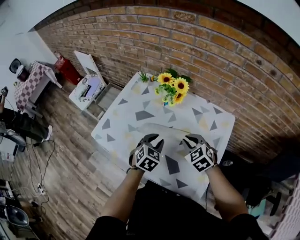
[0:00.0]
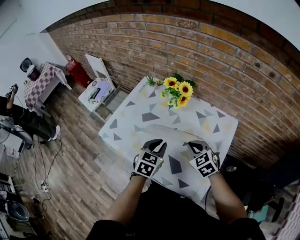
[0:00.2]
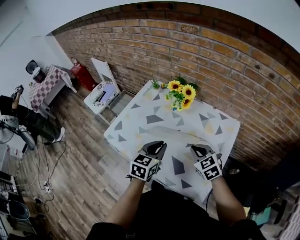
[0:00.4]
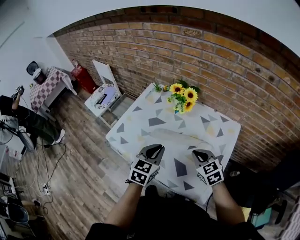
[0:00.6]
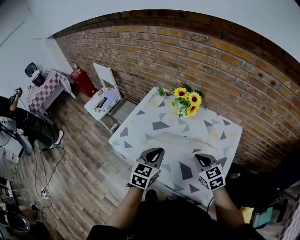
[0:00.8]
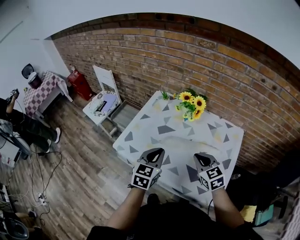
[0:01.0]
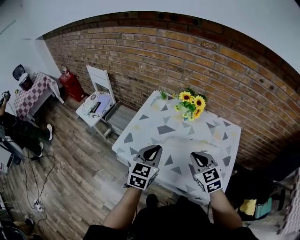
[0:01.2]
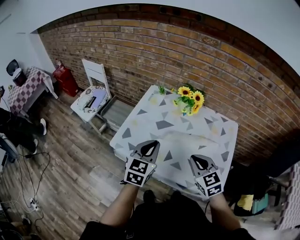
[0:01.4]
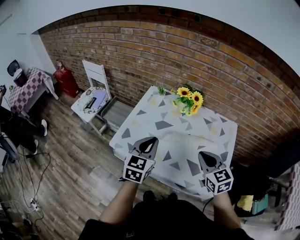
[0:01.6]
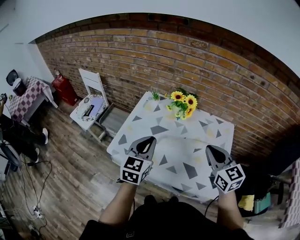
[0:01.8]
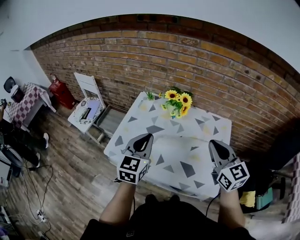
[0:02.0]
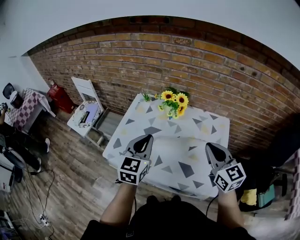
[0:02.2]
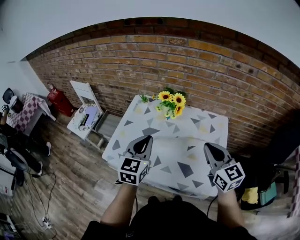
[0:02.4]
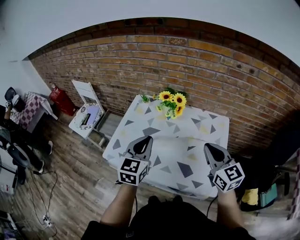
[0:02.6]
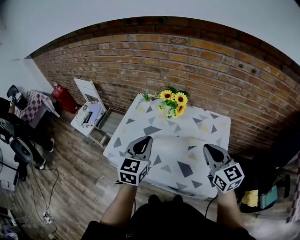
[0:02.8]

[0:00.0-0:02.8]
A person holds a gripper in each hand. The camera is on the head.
0:00.0 to 0:01.4: The right gripper heads to the left, upward and backward, covering some 20 cm. The left gripper goes roughly 20 cm to the left and upward, and swivels roughly 30 degrees.
0:01.4 to 0:02.8: The right gripper moves to the right and upward, roughly 15 cm, and turns by approximately 20 degrees; the left gripper moves to the right and upward, approximately 10 cm.

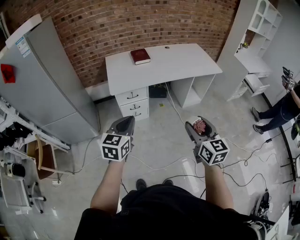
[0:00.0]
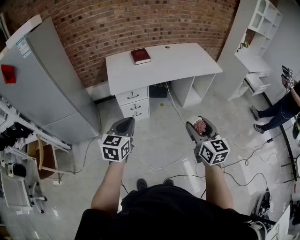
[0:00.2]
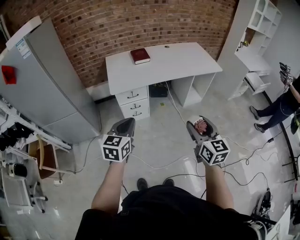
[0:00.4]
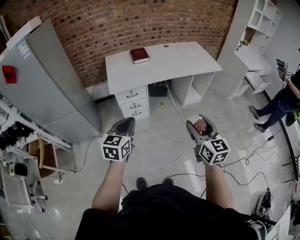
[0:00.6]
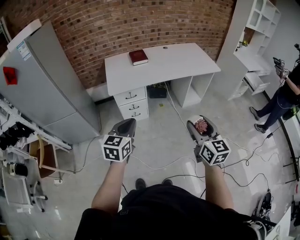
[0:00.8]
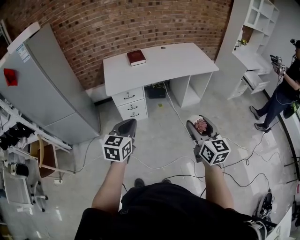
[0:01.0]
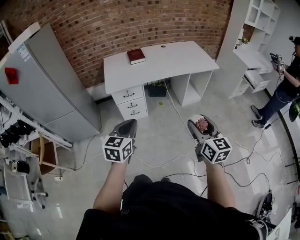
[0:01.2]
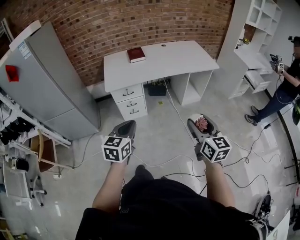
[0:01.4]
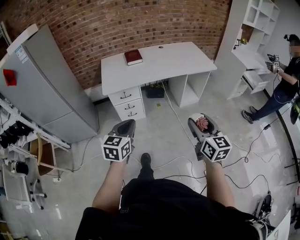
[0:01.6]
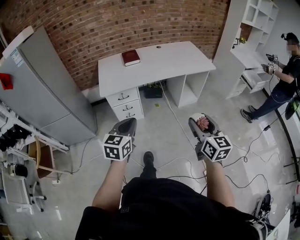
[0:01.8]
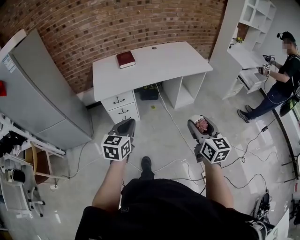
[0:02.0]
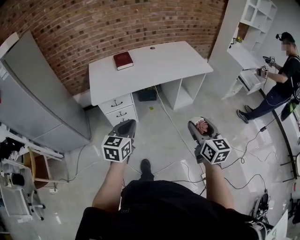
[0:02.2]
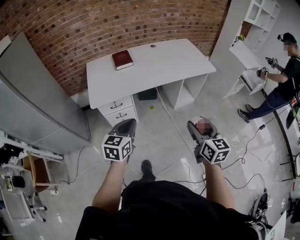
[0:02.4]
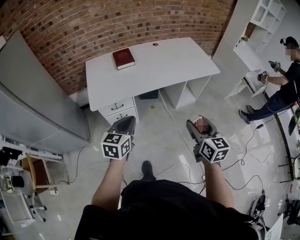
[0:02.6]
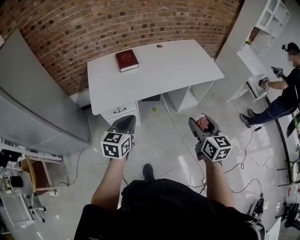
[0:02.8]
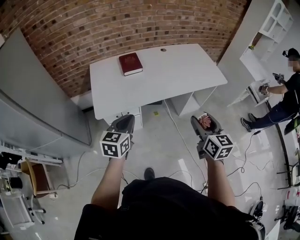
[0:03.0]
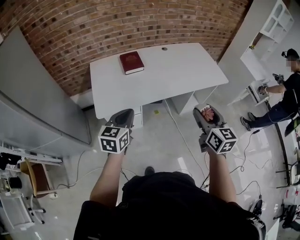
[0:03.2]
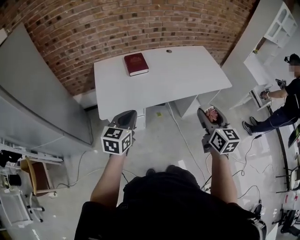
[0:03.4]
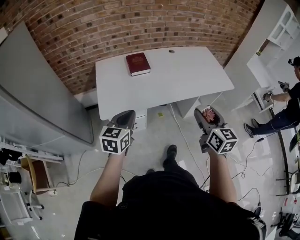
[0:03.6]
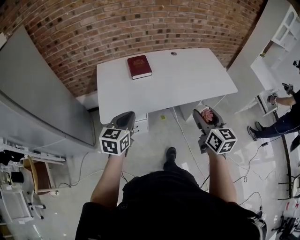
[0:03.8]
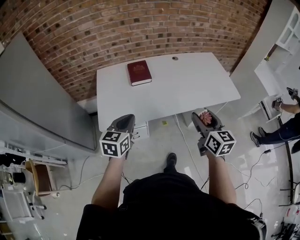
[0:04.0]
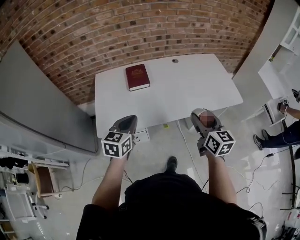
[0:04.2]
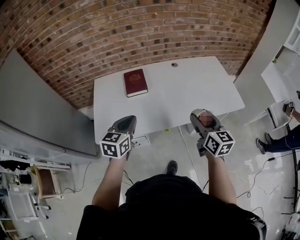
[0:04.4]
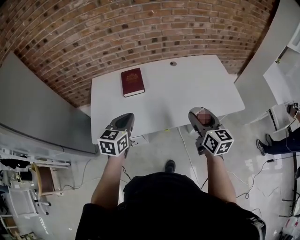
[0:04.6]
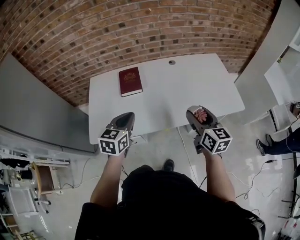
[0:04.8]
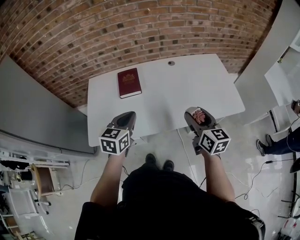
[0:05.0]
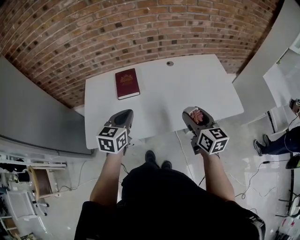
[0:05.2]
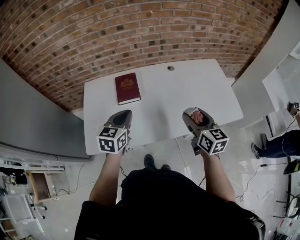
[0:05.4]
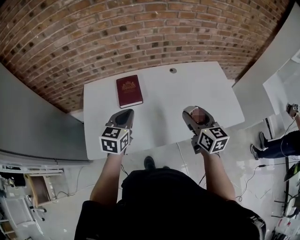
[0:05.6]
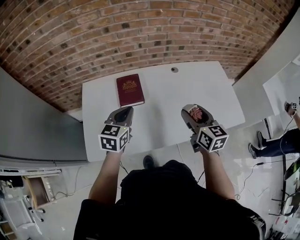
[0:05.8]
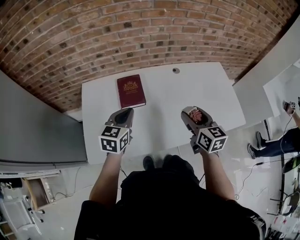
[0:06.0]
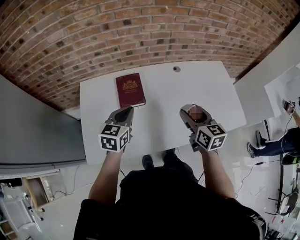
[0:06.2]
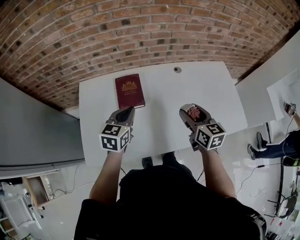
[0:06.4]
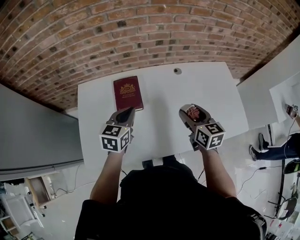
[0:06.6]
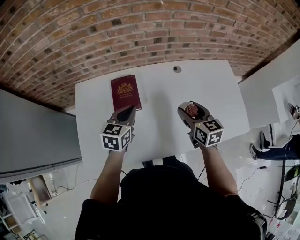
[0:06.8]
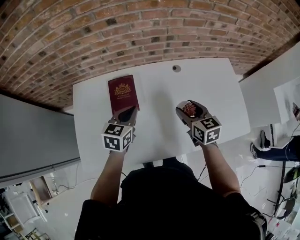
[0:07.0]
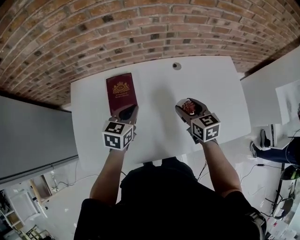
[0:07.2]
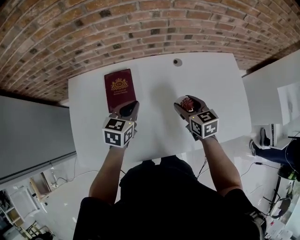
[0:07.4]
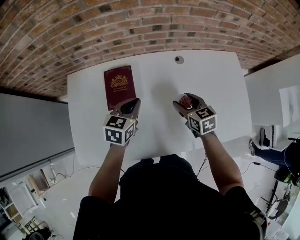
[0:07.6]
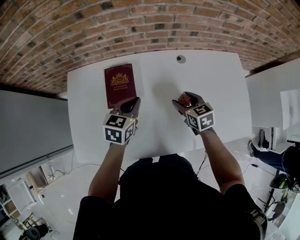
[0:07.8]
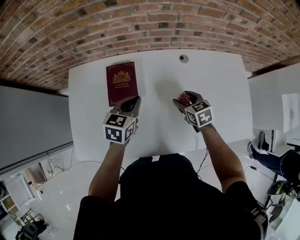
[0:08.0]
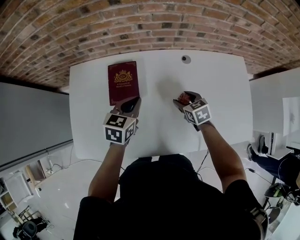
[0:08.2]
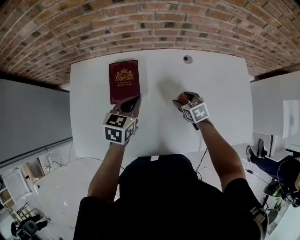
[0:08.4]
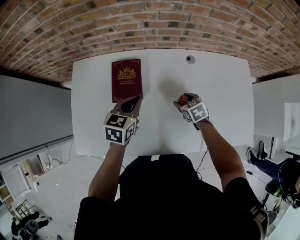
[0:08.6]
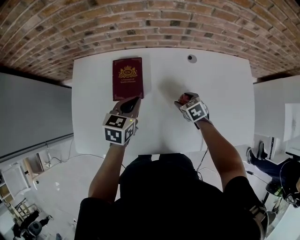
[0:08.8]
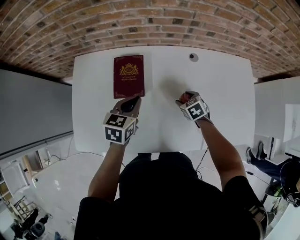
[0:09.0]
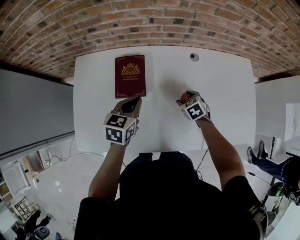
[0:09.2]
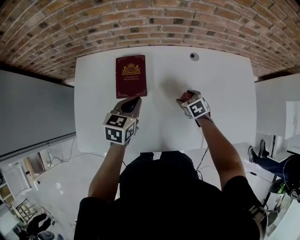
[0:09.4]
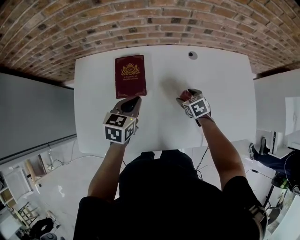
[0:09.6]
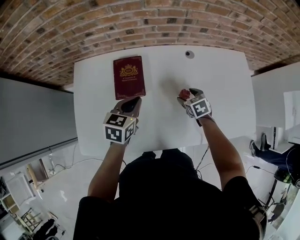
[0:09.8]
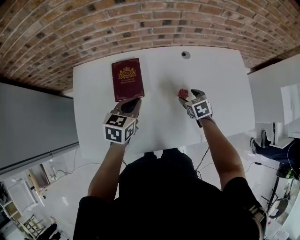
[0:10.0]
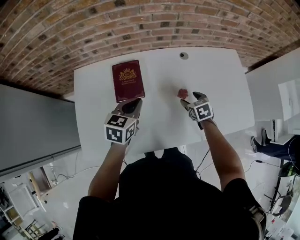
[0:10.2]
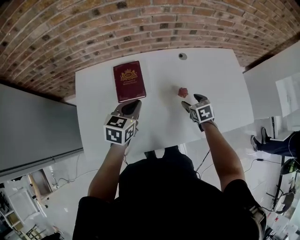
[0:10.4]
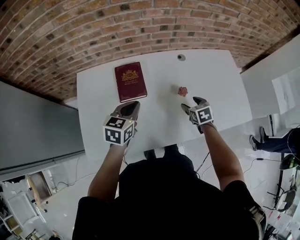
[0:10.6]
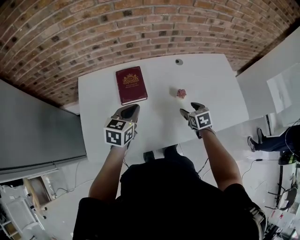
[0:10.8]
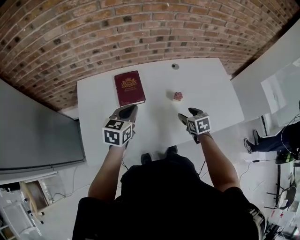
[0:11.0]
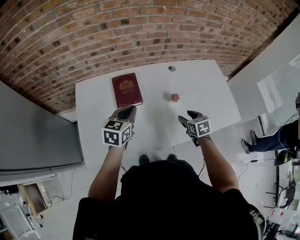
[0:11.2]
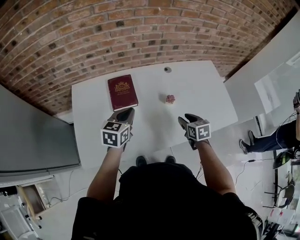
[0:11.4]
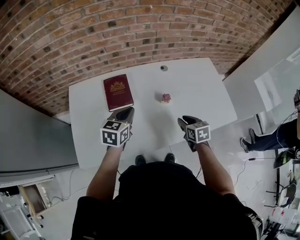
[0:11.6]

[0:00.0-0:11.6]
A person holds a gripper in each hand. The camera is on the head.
0:00.0 to 0:01.4: The two grippers go about 10 cm to the right.
0:01.4 to 0:02.8: The two grippers go about 30 cm forward.
0:02.8 to 0:04.4: The grippers both shift forward by about 25 cm.
0:04.4 to 0:05.8: Both grippers move forward, about 20 cm.
0:05.8 to 0:07.2: The left gripper heads forward, downward and to the right, covering about 15 cm. The right gripper heads forward and downward, covering roughly 20 cm.
0:07.2 to 0:08.8: The right gripper is displaced downward by about 20 cm, and swivels about 30 degrees.
0:08.8 to 0:10.2: The right gripper changes place by approximately 5 cm.
0:10.2 to 0:11.6: The left gripper ends up approximately 5 cm from where it was. The right gripper is displaced backward and upward by approximately 15 cm, and closes.

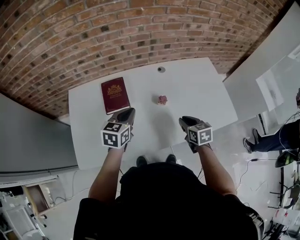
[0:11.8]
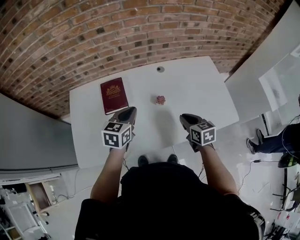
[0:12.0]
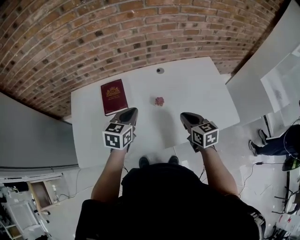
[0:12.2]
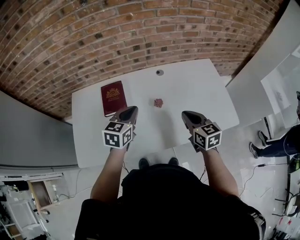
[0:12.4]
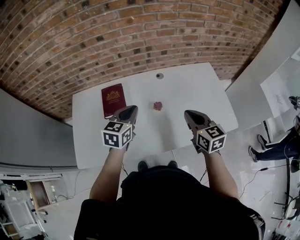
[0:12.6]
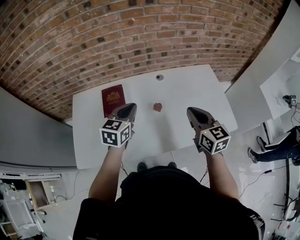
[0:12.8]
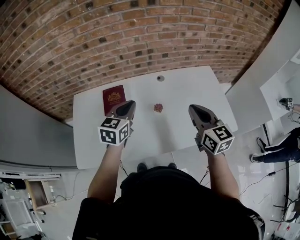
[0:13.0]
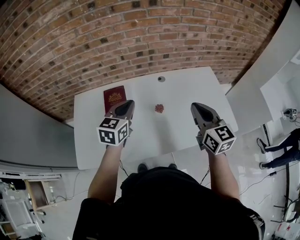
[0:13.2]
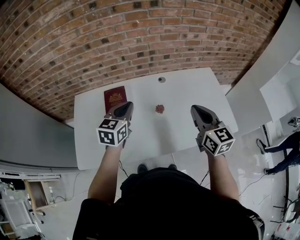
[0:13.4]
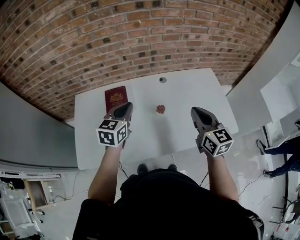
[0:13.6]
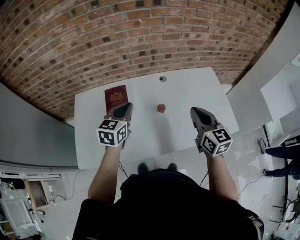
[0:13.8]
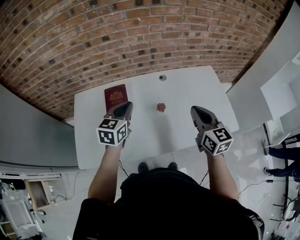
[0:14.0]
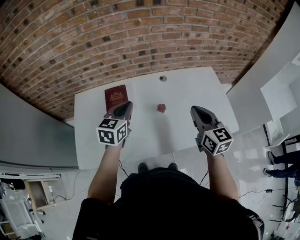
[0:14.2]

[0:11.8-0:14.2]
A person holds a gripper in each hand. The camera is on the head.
0:11.8 to 0:13.0: The right gripper goes some 20 cm upward, and angles its fingers upward, by about 30 degrees. The left gripper heads upward and to the right, covering approximately 10 cm.
0:13.0 to 0:14.2: There are only small adjustments of the grippers.

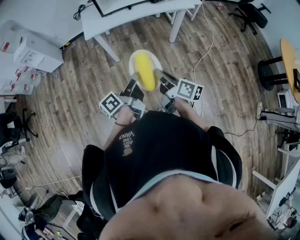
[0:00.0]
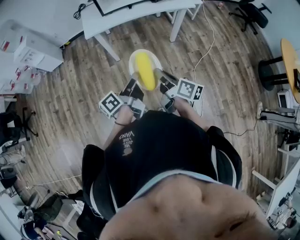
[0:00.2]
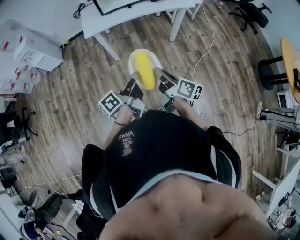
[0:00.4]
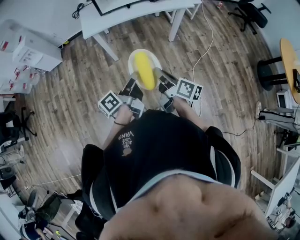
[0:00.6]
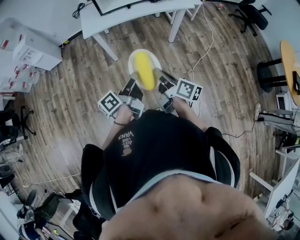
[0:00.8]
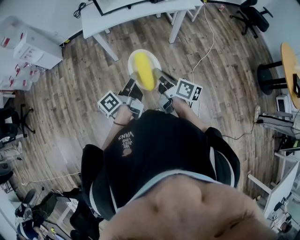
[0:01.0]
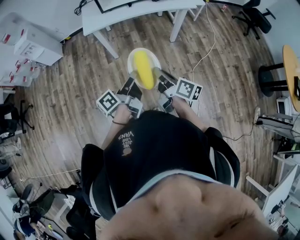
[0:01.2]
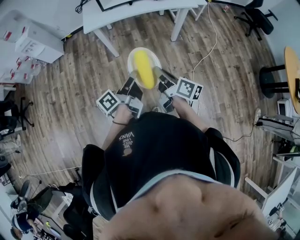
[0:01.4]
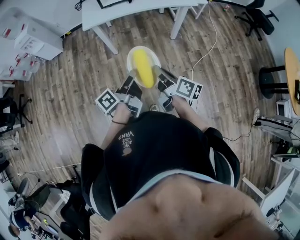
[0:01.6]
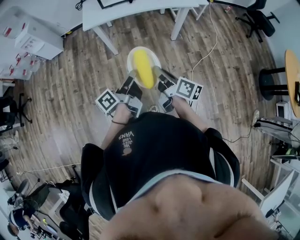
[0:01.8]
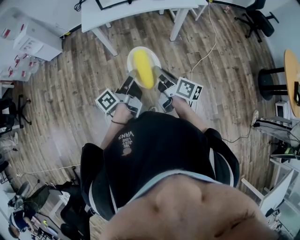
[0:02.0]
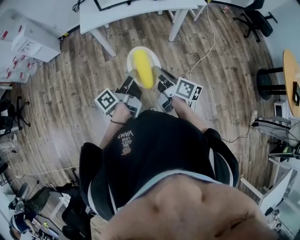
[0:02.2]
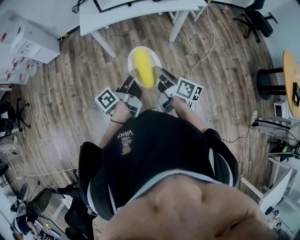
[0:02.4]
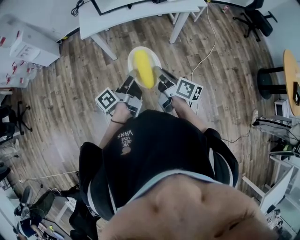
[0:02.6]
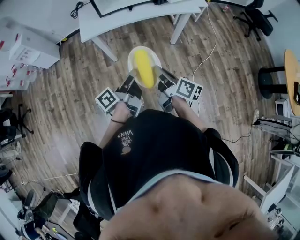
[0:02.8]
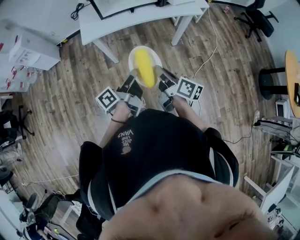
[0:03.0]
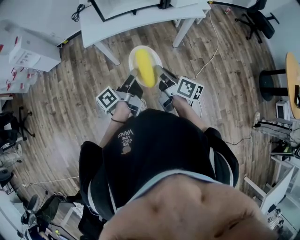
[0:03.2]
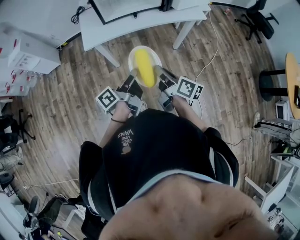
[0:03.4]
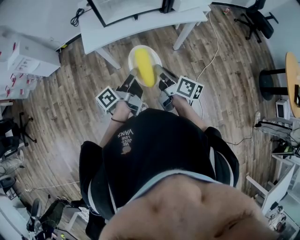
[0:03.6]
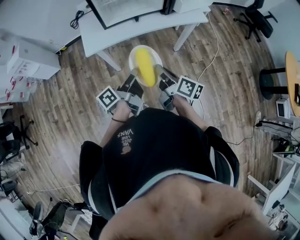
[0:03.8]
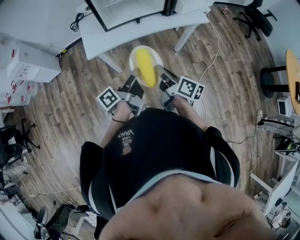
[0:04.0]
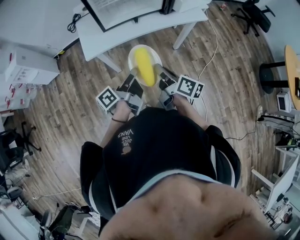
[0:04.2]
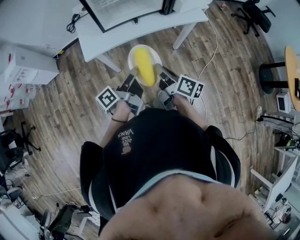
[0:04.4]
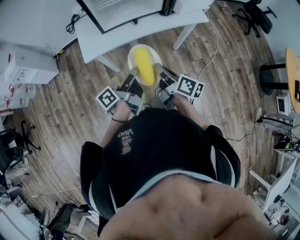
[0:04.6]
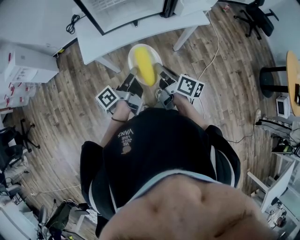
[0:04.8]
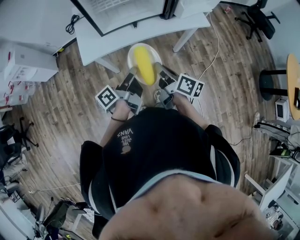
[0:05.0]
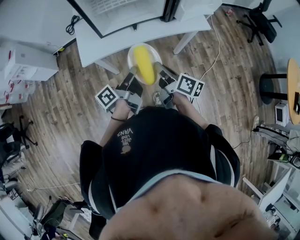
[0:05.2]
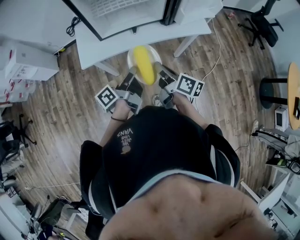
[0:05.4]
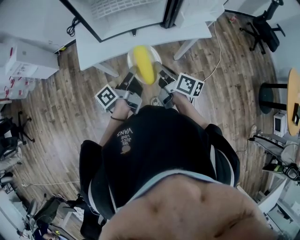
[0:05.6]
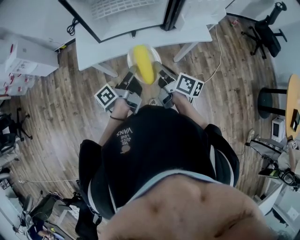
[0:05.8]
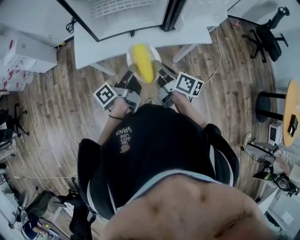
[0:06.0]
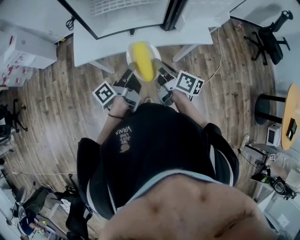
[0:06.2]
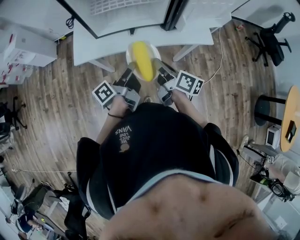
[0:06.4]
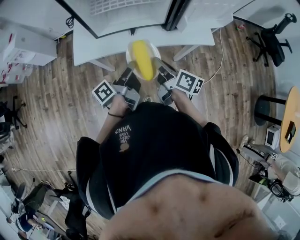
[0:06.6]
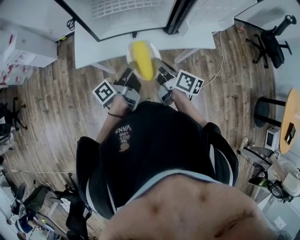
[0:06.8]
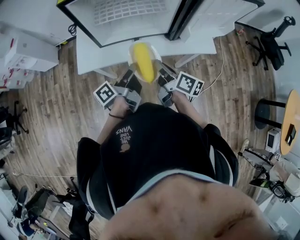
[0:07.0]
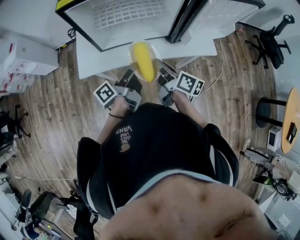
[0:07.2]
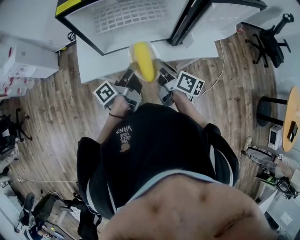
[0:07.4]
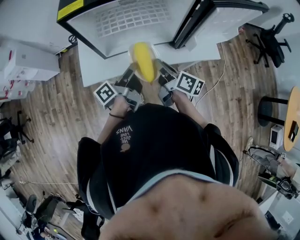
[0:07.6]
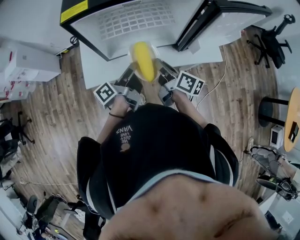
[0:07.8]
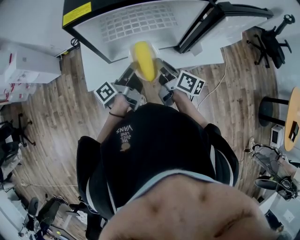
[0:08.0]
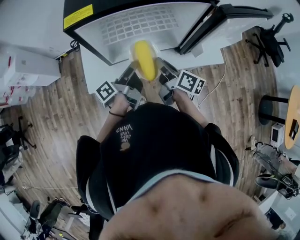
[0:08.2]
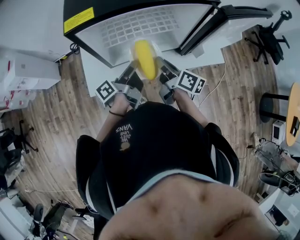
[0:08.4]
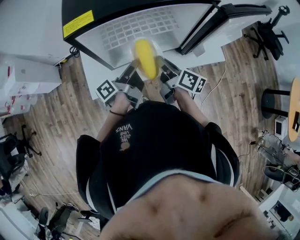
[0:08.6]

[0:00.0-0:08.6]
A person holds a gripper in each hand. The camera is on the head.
0:01.4 to 0:02.8: The right gripper moves about 10 cm.
0:02.8 to 0:04.4: The right gripper moves approximately 15 cm.
0:04.4 to 0:05.8: The right gripper ends up about 15 cm from where it was.
0:05.8 to 0:07.2: The right gripper shifts by about 10 cm.
0:07.2 to 0:08.6: The right gripper changes place by roughly 10 cm.
